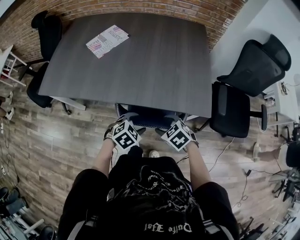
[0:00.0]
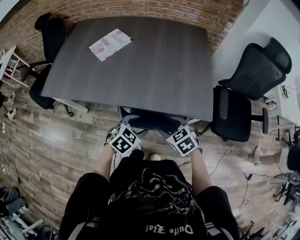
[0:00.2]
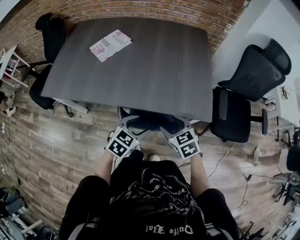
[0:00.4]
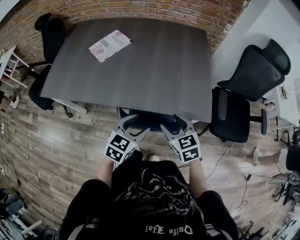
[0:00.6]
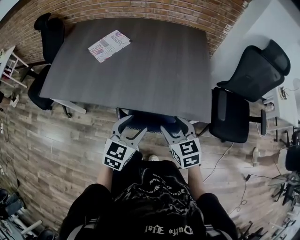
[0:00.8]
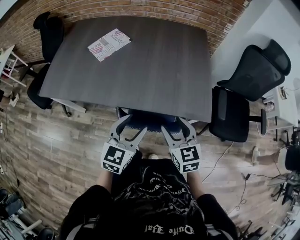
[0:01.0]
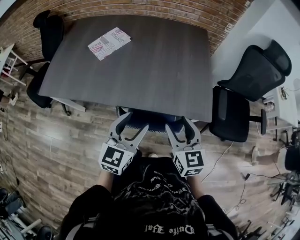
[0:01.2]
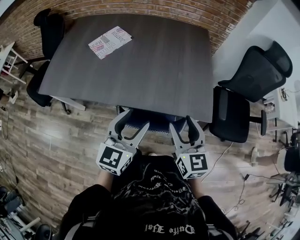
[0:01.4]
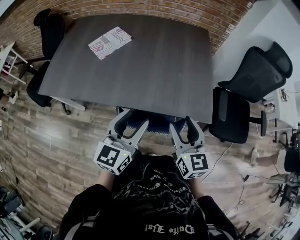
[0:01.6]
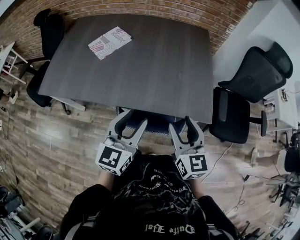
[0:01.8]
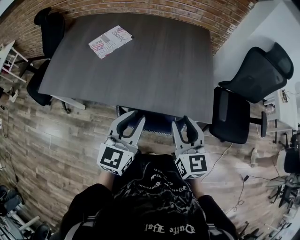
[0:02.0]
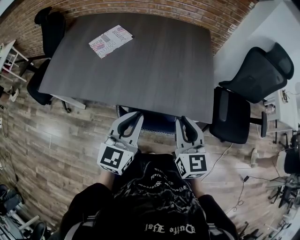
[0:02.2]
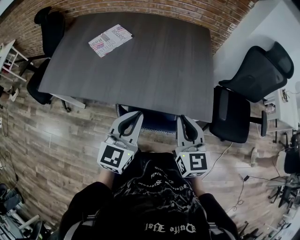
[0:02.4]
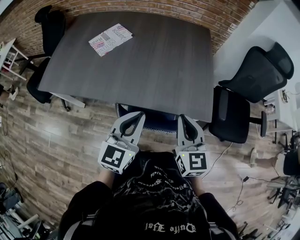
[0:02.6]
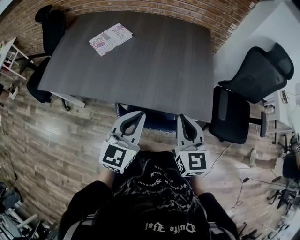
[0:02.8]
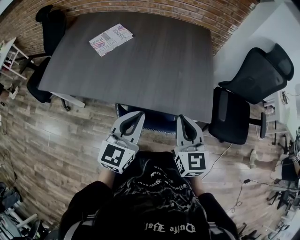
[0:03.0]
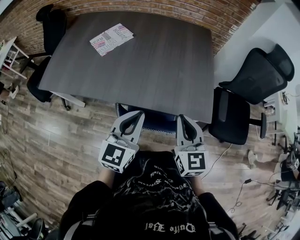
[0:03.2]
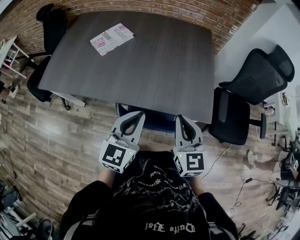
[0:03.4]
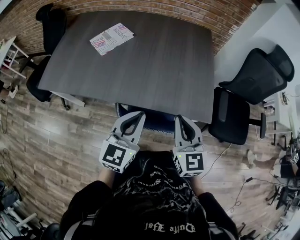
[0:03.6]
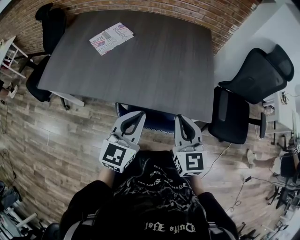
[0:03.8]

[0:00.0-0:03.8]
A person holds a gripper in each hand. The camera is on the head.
0:00.0 to 0:01.2: The two grippers go about 15 cm upward. The left gripper tilts its fingers some 40 degrees upward. Meanwhile the right gripper angles its fingers upward, by some 40 degrees.
0:01.2 to 0:02.6: The right gripper closes its fingers. Meanwhile the left gripper closes.
0:02.6 to 0:03.8: The grippers stay close to where they were, moving slightly.

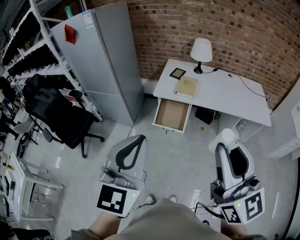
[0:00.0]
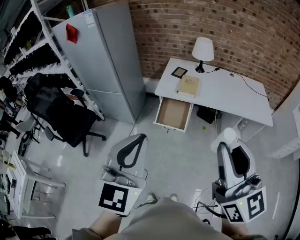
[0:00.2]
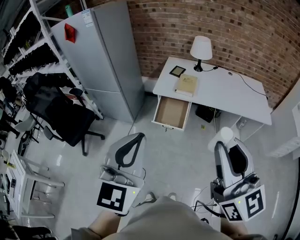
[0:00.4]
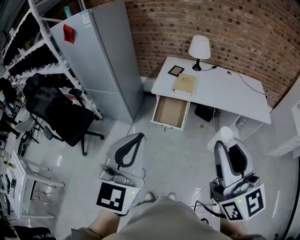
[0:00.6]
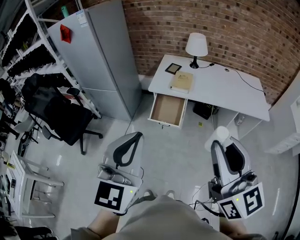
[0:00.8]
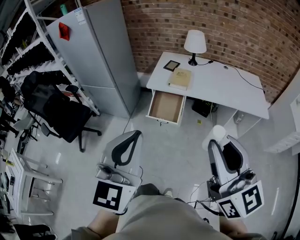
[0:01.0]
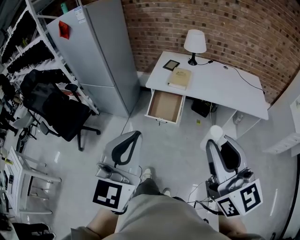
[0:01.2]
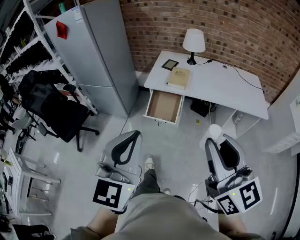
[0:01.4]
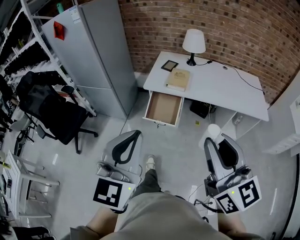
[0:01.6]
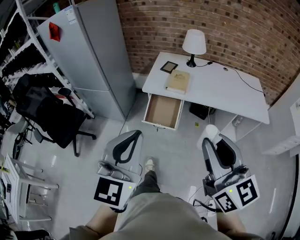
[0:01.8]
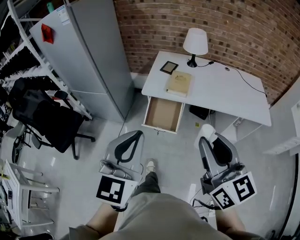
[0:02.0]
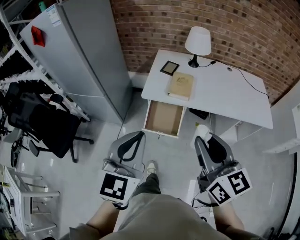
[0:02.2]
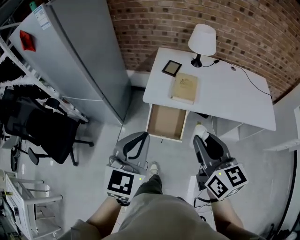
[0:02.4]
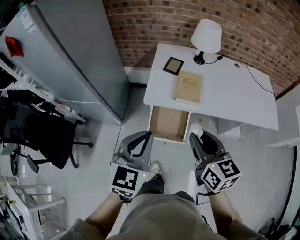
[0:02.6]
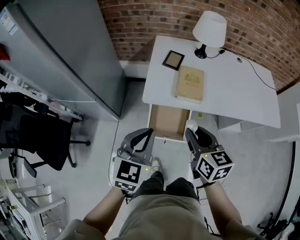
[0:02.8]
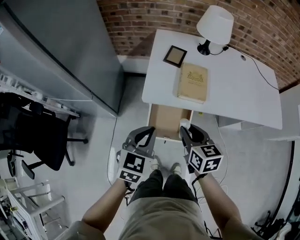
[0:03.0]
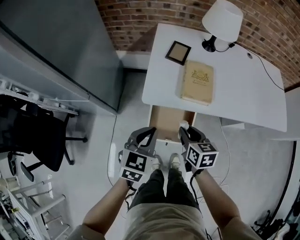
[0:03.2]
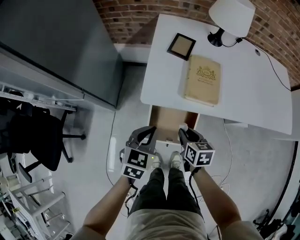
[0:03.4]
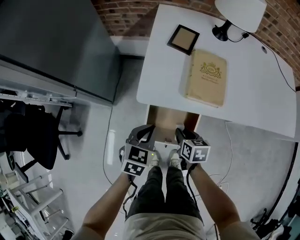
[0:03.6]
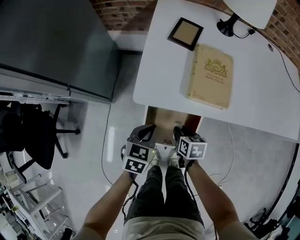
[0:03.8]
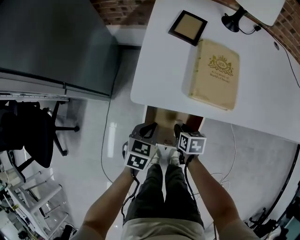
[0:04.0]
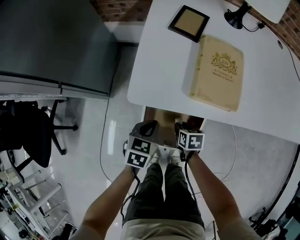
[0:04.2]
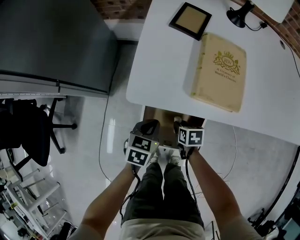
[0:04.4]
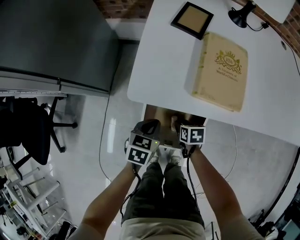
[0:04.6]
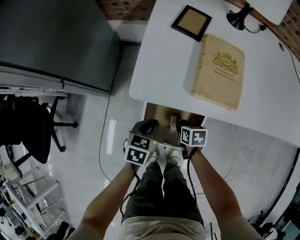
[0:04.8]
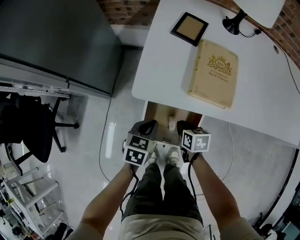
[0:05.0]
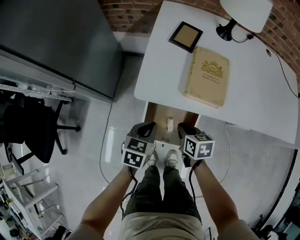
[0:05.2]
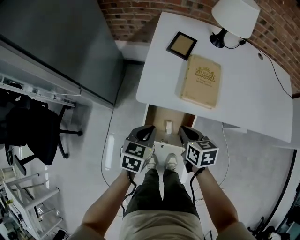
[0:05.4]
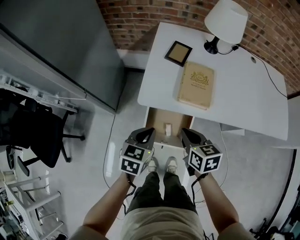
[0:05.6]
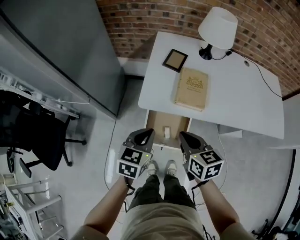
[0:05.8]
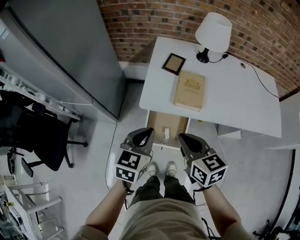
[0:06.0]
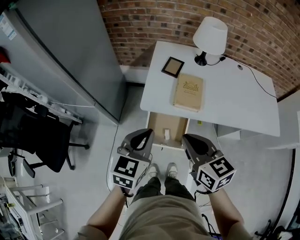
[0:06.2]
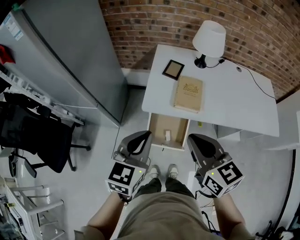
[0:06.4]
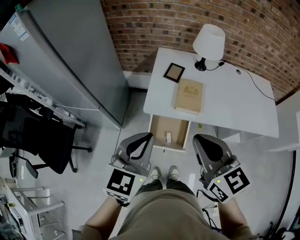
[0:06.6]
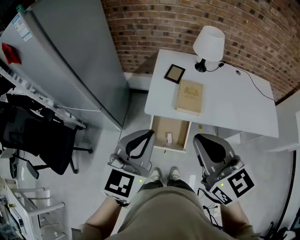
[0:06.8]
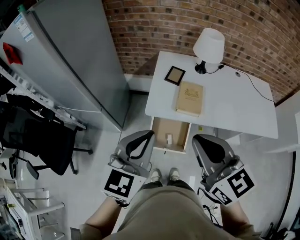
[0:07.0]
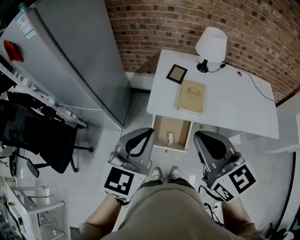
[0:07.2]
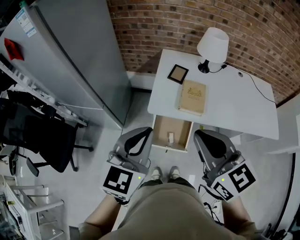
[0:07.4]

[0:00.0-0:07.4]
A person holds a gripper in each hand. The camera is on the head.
0:00.0 to 0:01.4: The right gripper shifts some 5 cm downward; the left gripper goes roughly 5 cm to the right.
0:01.4 to 0:03.0: Both grippers are carried forward, some 50 cm. Both grippers travel together downward, roughly 30 cm. The left gripper rotates about 30 degrees. Meanwhile the right gripper tips its fingers downward by approximately 40 degrees.
0:03.0 to 0:04.4: Both grippers move downward, roughly 40 cm. The left gripper rotates roughly 30 degrees. The right gripper angles its fingers downward, by some 30 degrees.
0:04.4 to 0:06.0: The grippers both shift upward by some 40 cm. The right gripper tilts its fingers approximately 40 degrees upward, and closes up; the left gripper changes its angle by roughly 20 degrees.
0:06.0 to 0:07.4: The grippers both shift upward by about 20 cm. The right gripper turns by some 20 degrees.

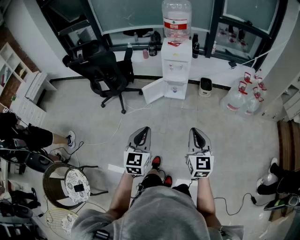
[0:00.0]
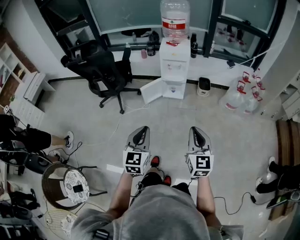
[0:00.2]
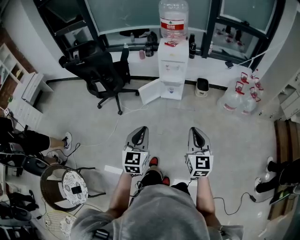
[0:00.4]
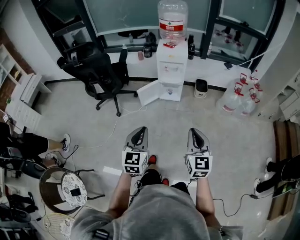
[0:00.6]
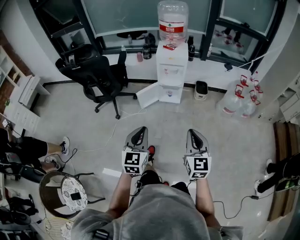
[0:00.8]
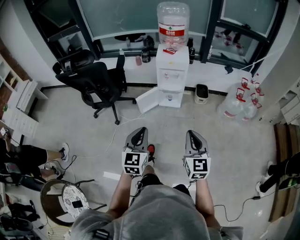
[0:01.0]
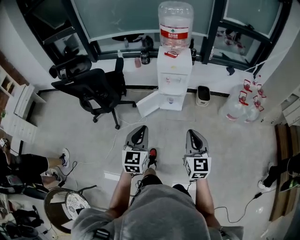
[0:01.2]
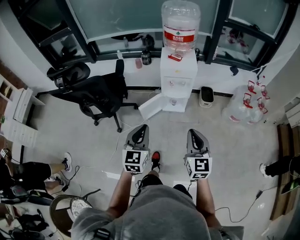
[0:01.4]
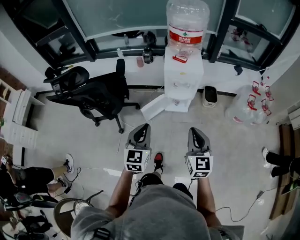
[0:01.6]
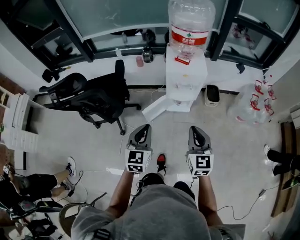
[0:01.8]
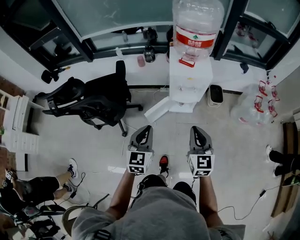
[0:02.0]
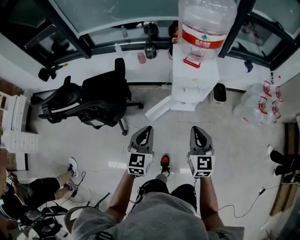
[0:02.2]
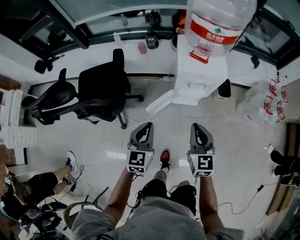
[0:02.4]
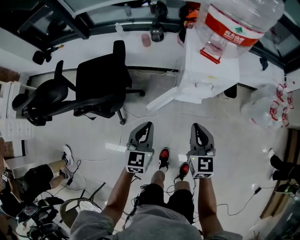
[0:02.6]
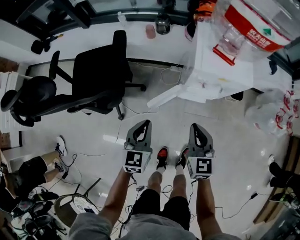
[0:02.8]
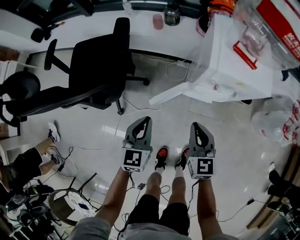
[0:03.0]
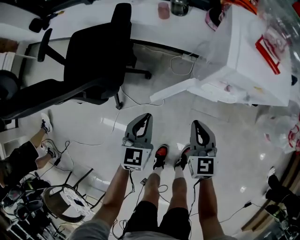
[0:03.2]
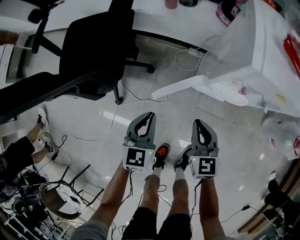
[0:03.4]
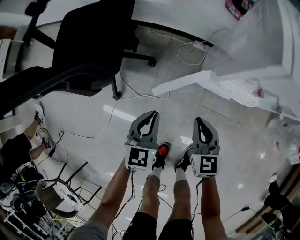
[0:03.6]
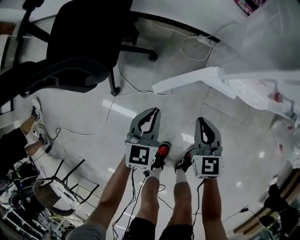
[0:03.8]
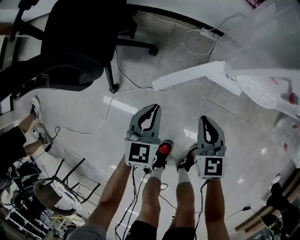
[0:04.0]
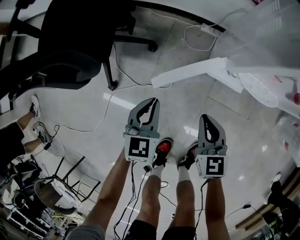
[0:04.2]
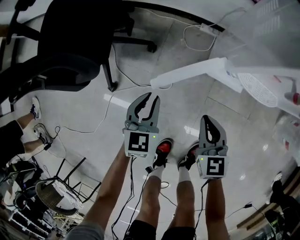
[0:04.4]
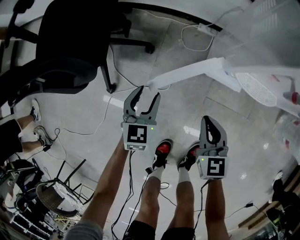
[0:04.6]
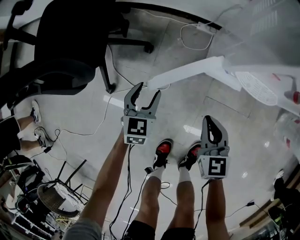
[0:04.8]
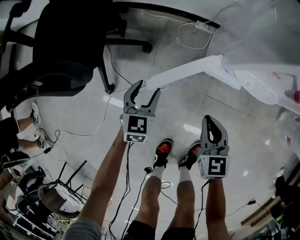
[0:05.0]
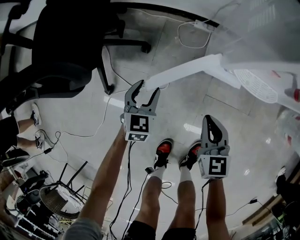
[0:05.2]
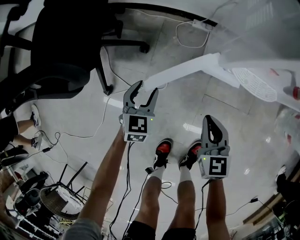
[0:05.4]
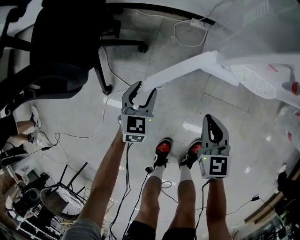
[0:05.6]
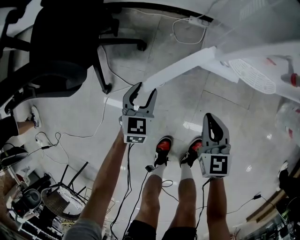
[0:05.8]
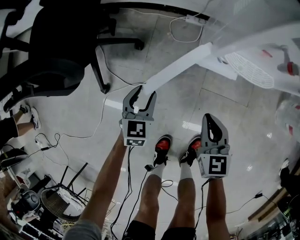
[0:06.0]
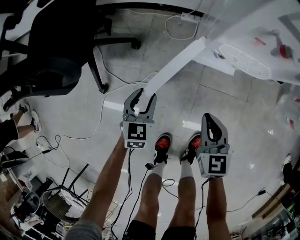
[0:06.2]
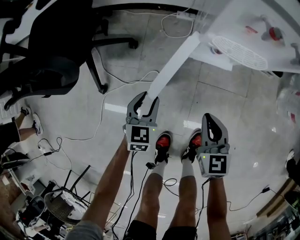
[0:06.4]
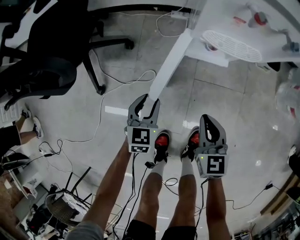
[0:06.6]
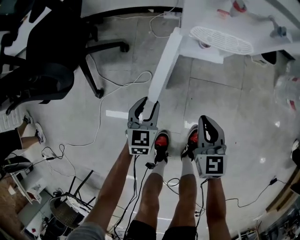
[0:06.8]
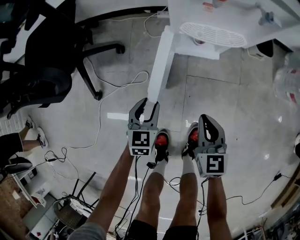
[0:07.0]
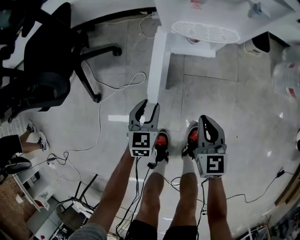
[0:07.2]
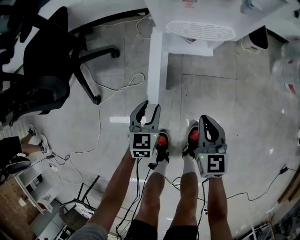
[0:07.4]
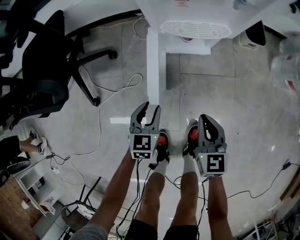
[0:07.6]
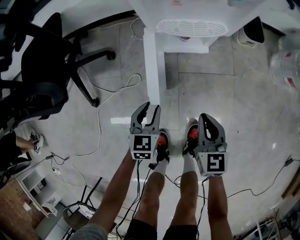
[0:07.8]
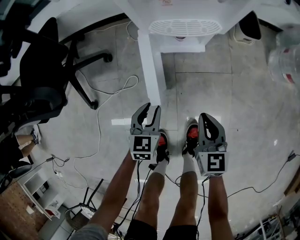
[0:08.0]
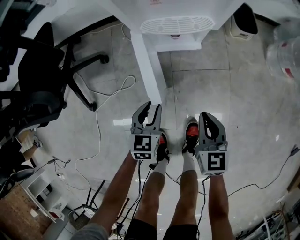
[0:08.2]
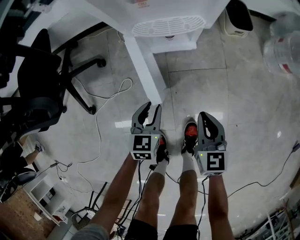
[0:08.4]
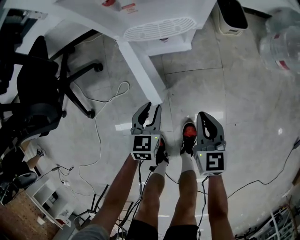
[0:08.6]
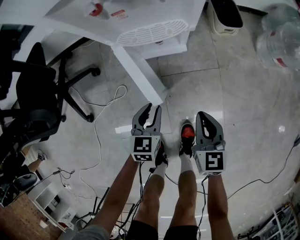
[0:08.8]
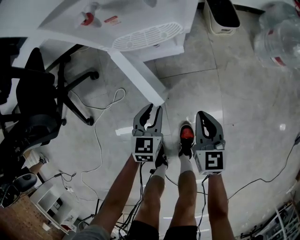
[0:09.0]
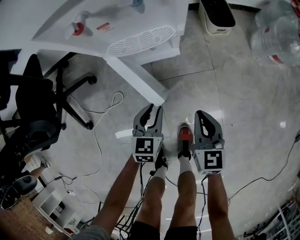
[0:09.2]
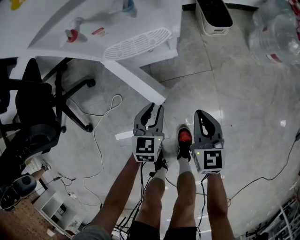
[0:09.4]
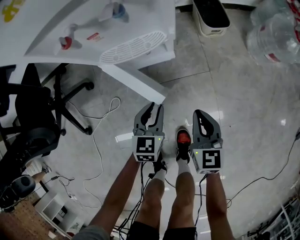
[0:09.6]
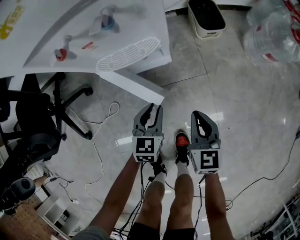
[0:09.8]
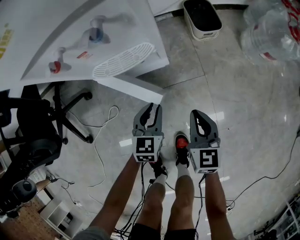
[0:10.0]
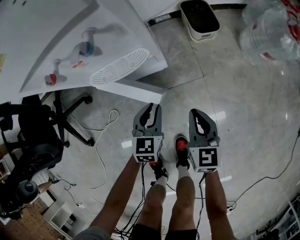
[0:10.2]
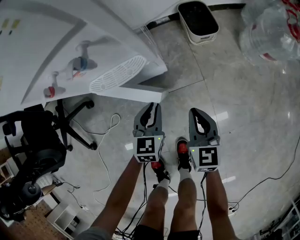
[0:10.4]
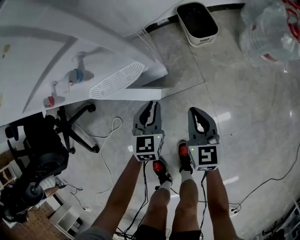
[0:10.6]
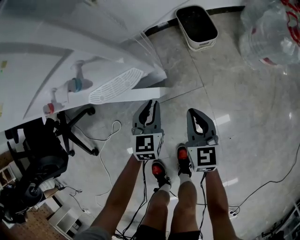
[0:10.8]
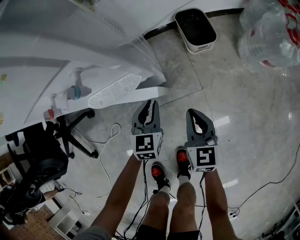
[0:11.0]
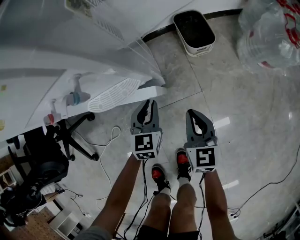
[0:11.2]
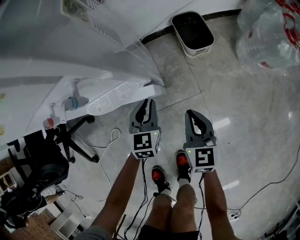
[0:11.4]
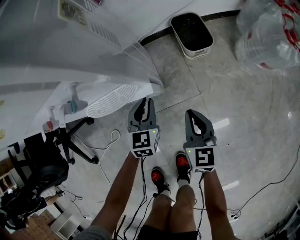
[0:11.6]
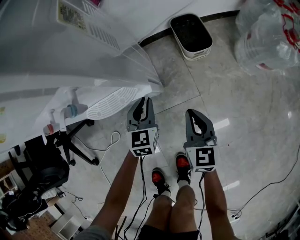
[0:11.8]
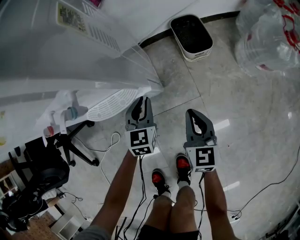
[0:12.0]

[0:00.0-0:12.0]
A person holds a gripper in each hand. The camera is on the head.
0:00.0 to 0:01.6: Both grippers travel together forward, roughly 35 cm.
0:01.6 to 0:03.0: The left gripper is displaced downward and forward by approximately 35 cm. Meanwhile the right gripper travels downward, forward and to the left by roughly 40 cm.
0:03.0 to 0:04.4: The grippers both shift downward by some 30 cm.
0:04.4 to 0:06.0: The right gripper shifts by roughly 5 cm, while the left gripper shifts about 5 cm downward, and opens its fingers.
0:06.0 to 0:07.6: Both grippers travel together to the right and backward, some 15 cm.
0:07.6 to 0:09.0: The grippers both shift to the right by approximately 10 cm.
0:09.0 to 0:10.4: Both grippers travel together forward and to the right, roughly 10 cm.
0:10.4 to 0:12.0: The right gripper heads forward, covering approximately 10 cm, while the left gripper is displaced forward by roughly 10 cm.
